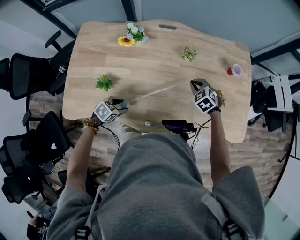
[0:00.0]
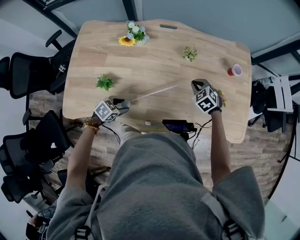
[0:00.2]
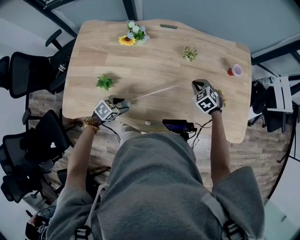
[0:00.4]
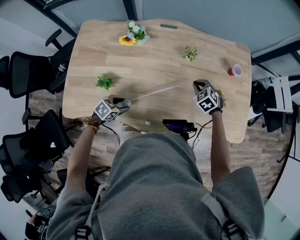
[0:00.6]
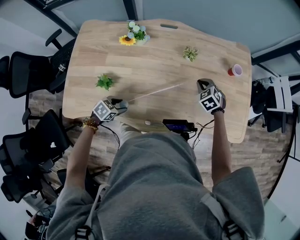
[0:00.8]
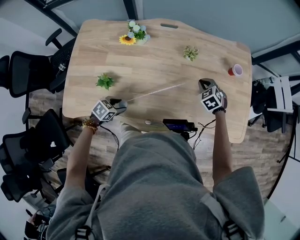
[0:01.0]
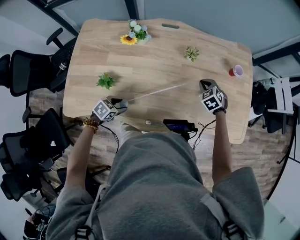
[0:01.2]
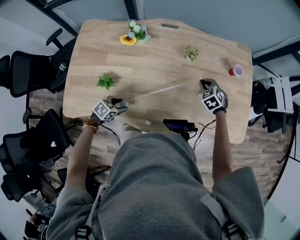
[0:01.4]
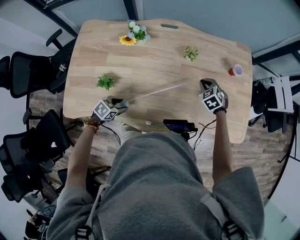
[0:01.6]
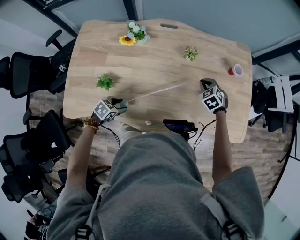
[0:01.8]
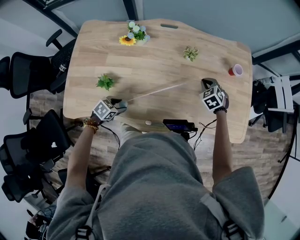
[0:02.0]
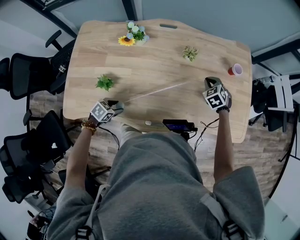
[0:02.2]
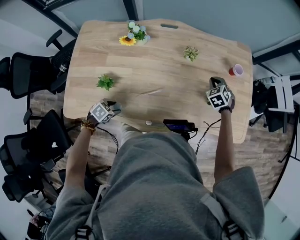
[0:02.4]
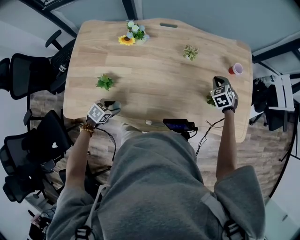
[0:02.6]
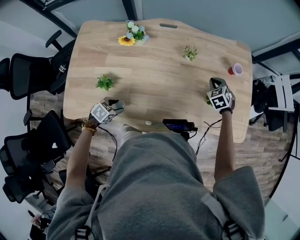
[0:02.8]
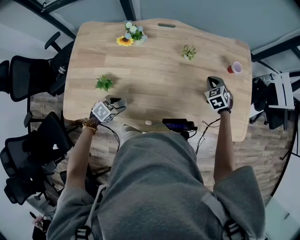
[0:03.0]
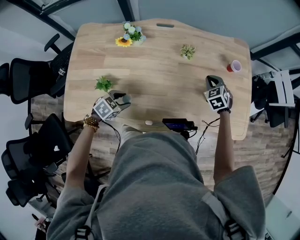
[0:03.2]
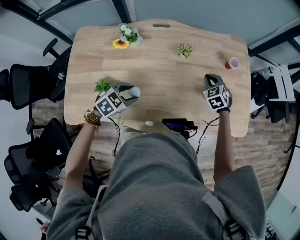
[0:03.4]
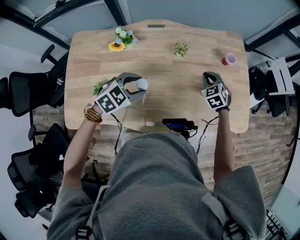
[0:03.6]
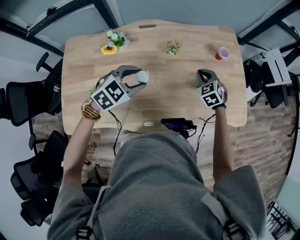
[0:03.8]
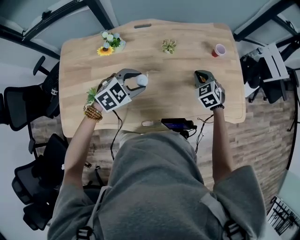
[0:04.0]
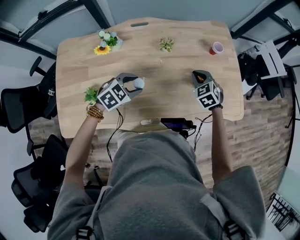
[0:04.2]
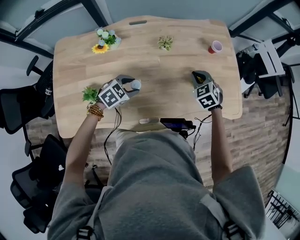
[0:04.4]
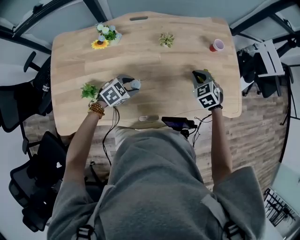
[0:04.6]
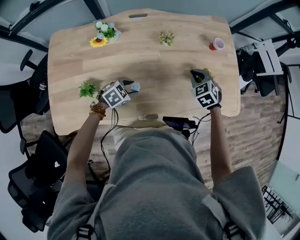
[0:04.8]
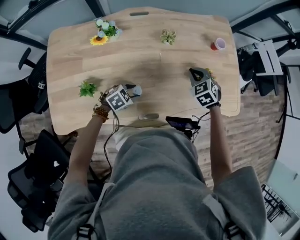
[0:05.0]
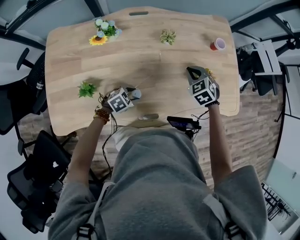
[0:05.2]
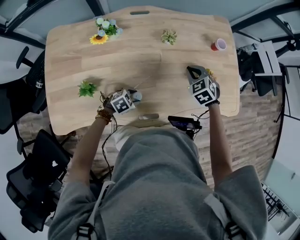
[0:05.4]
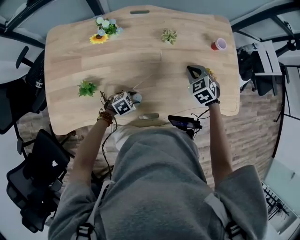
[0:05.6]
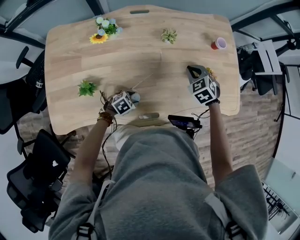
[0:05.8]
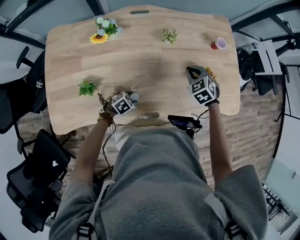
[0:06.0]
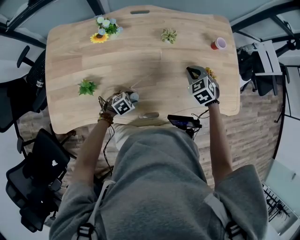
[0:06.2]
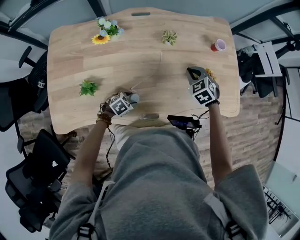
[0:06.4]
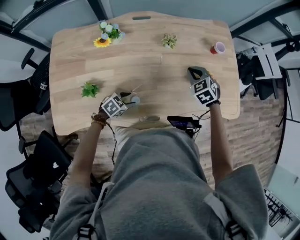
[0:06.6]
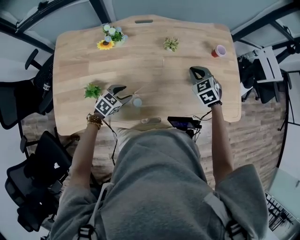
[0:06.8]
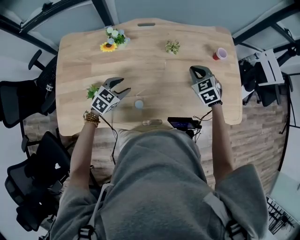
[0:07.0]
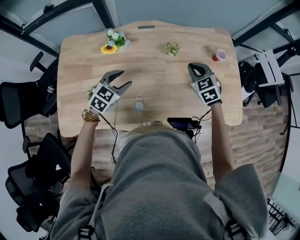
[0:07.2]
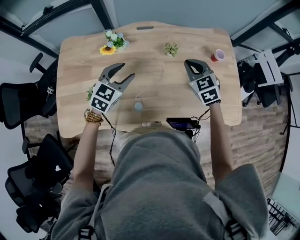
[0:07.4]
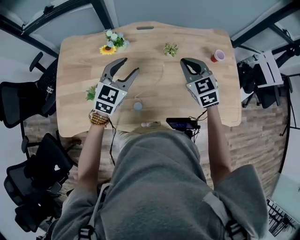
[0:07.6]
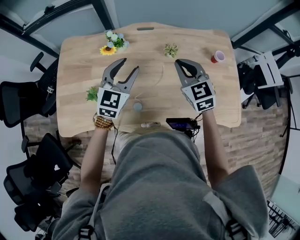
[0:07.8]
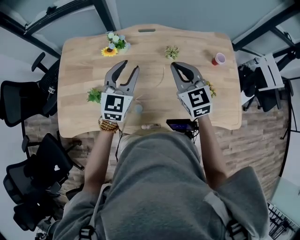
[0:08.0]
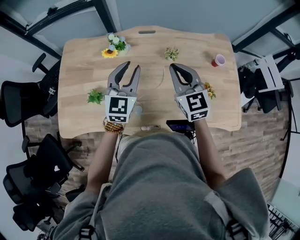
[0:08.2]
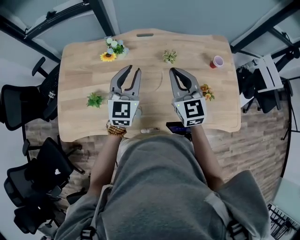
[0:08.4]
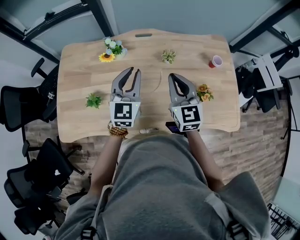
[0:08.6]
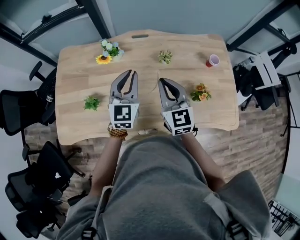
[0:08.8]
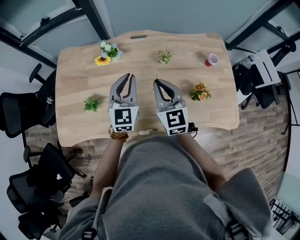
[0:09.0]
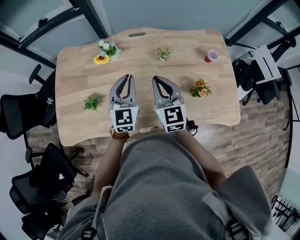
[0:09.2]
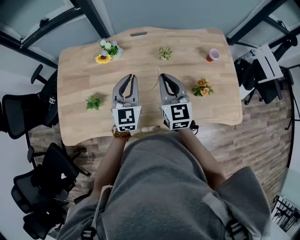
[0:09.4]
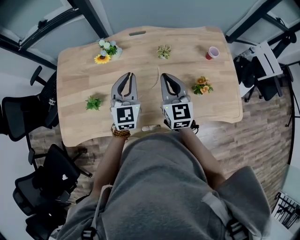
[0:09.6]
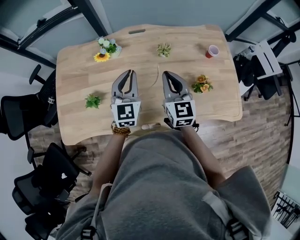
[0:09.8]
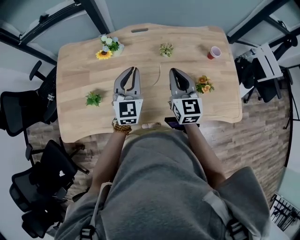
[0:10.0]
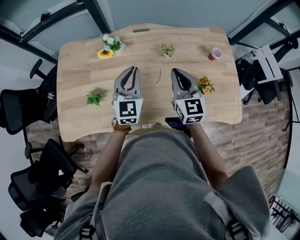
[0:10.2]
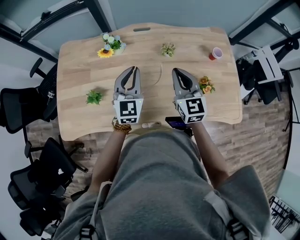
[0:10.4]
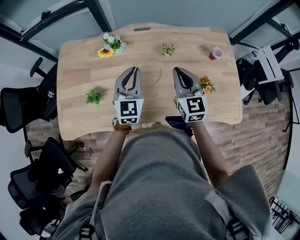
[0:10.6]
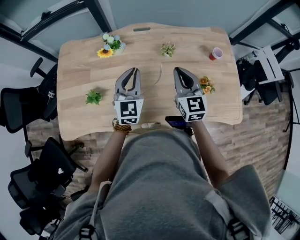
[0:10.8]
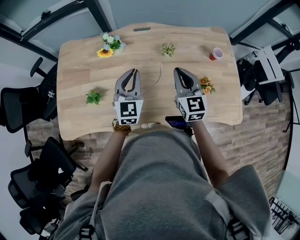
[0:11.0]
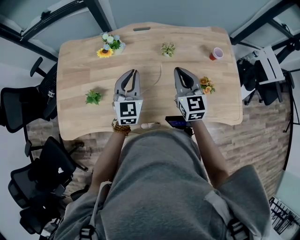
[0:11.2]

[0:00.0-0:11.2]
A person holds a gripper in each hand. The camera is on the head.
0:00.0 to 0:01.6: The right gripper changes place by about 5 cm.
0:01.6 to 0:03.2: The left gripper changes place by approximately 5 cm.
0:03.2 to 0:04.8: The left gripper moves forward and to the right, about 10 cm, and reaches about 15 cm upward, then returns; the right gripper heads backward, covering some 5 cm.
0:04.8 to 0:06.4: The left gripper is displaced downward and backward by some 10 cm.
0:06.4 to 0:08.0: The right gripper travels upward by approximately 20 cm, and tilts its fingers roughly 40 degrees upward. Meanwhile the left gripper moves upward, roughly 35 cm, and angles its fingers upward, by approximately 50 degrees.
0:08.0 to 0:09.6: The right gripper changes its angle by some 20 degrees. The left gripper closes.
0:09.6 to 0:11.2: The grippers stay close to where they were, moving slightly.

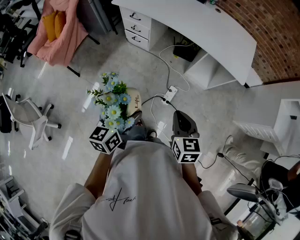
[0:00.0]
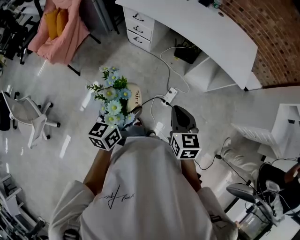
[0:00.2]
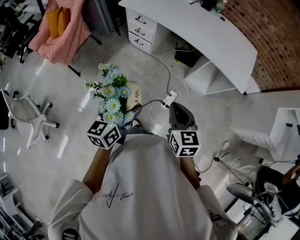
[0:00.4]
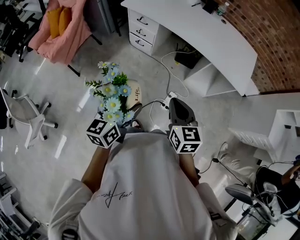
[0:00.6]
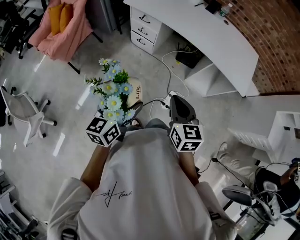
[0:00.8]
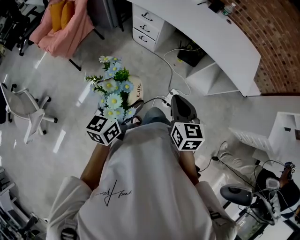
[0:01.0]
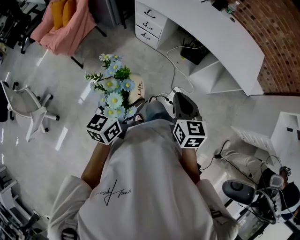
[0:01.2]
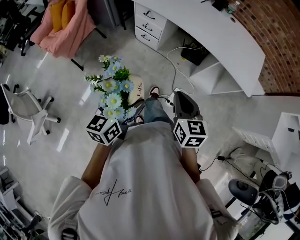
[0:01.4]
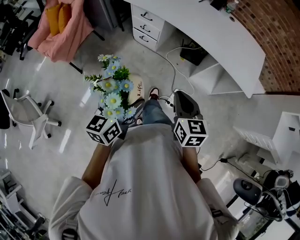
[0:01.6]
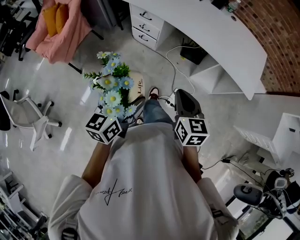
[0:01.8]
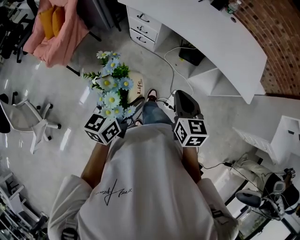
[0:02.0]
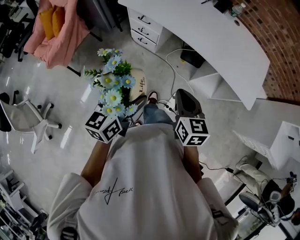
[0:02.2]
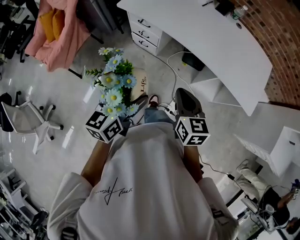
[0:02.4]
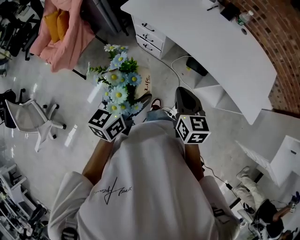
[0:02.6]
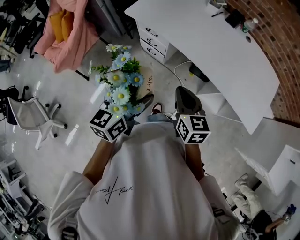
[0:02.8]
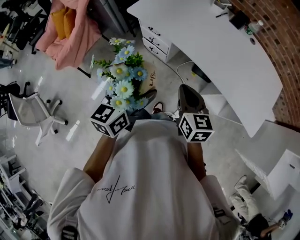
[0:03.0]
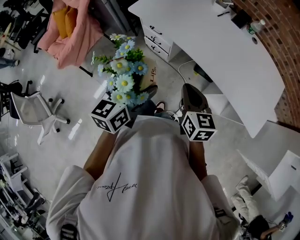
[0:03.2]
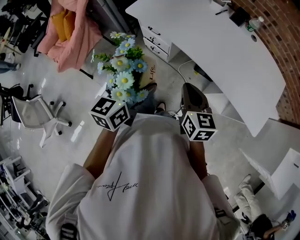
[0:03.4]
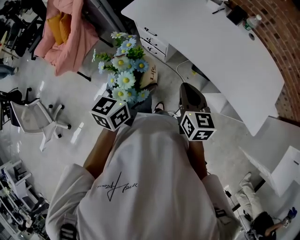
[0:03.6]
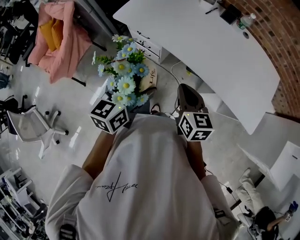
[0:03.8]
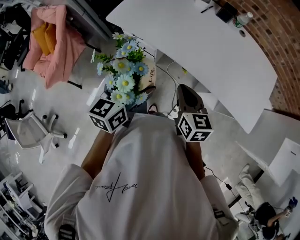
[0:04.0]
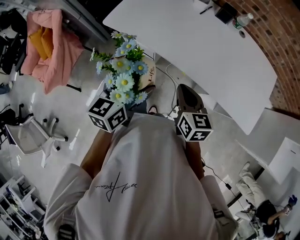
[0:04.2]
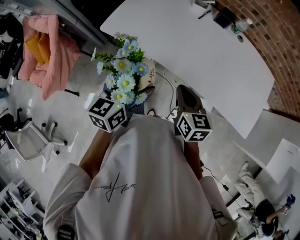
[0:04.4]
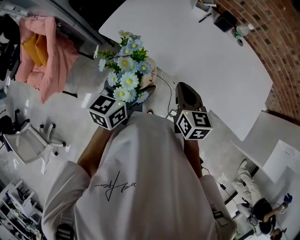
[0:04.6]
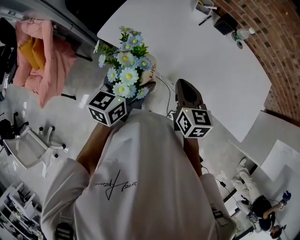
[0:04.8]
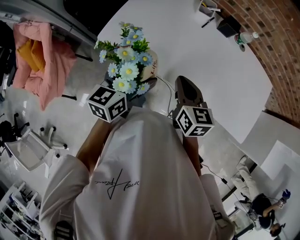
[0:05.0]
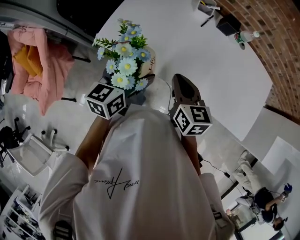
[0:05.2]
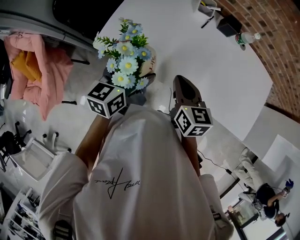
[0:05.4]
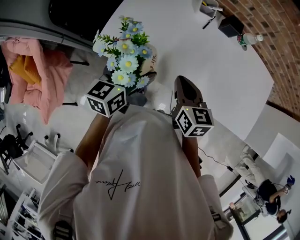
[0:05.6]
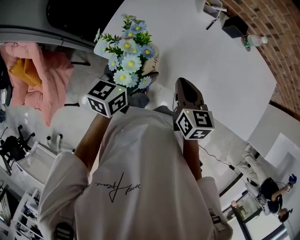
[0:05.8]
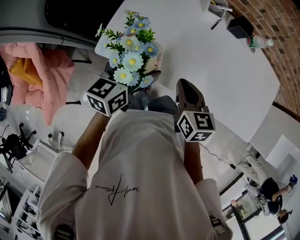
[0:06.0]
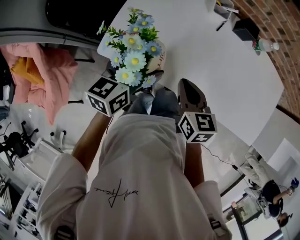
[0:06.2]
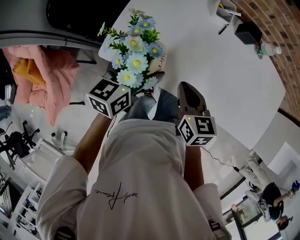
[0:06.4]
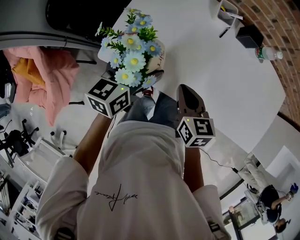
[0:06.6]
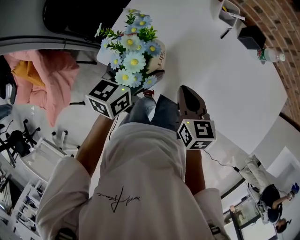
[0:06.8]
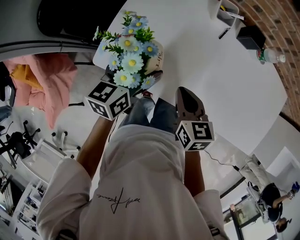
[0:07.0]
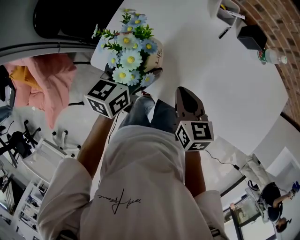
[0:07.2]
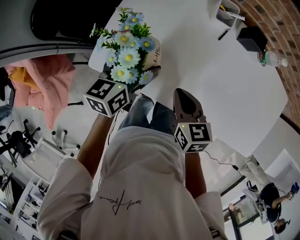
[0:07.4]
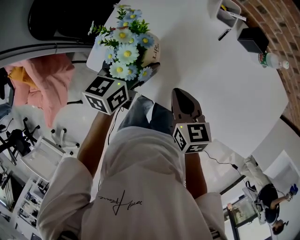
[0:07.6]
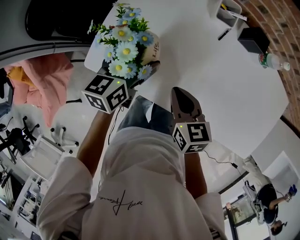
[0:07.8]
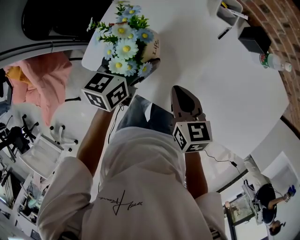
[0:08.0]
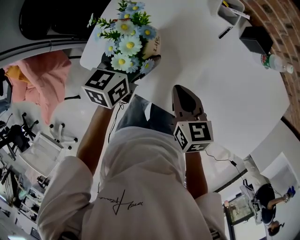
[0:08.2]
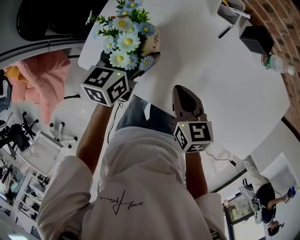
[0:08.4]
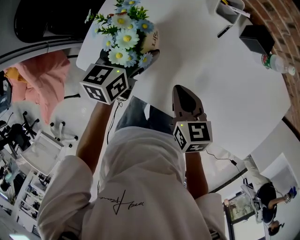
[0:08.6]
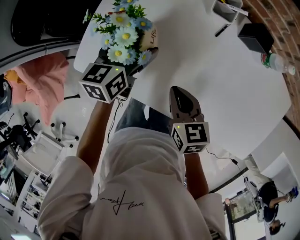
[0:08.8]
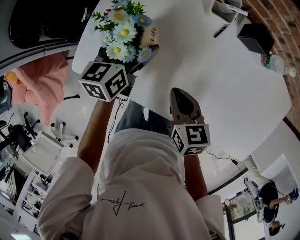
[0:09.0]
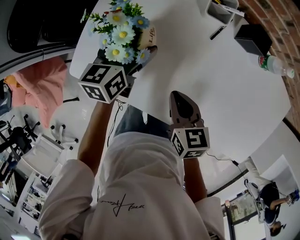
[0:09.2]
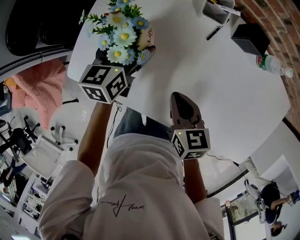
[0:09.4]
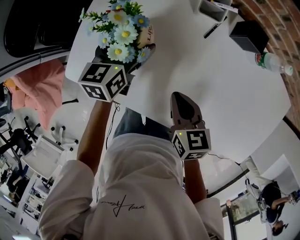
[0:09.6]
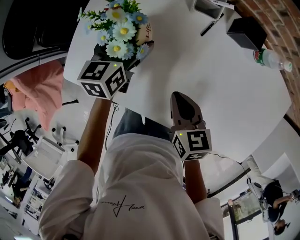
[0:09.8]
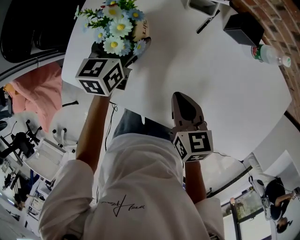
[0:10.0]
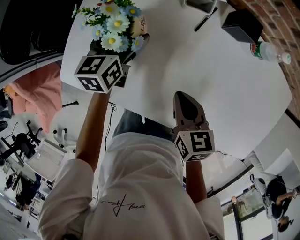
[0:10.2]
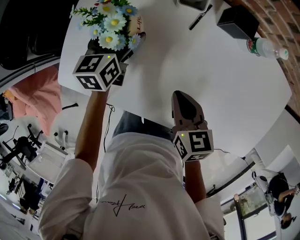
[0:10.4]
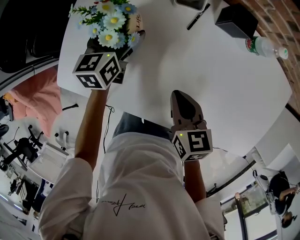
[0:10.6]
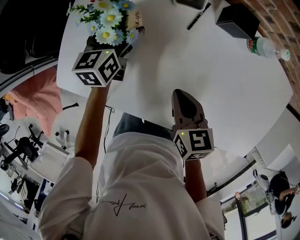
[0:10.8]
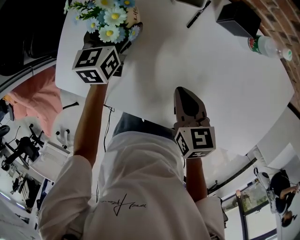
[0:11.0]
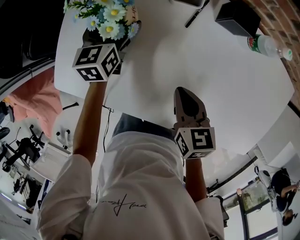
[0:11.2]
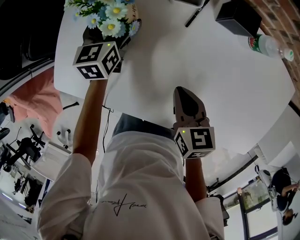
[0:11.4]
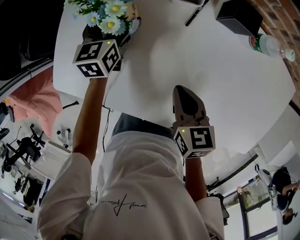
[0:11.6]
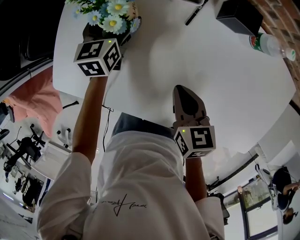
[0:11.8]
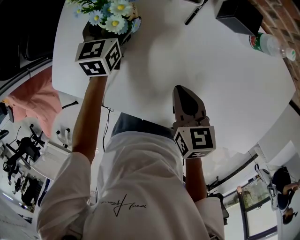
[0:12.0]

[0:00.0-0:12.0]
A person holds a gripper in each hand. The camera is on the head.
0:00.0 to 0:01.6: The grippers both shift forward and to the left by roughly 15 cm.
0:01.6 to 0:03.0: The two grippers go approximately 25 cm forward.
0:03.0 to 0:04.4: The grippers both shift forward by some 15 cm.
0:04.4 to 0:06.0: The two grippers go about 20 cm forward and to the left.
0:06.0 to 0:07.6: The two grippers go approximately 10 cm forward and downward.
0:07.6 to 0:09.0: The left gripper moves forward, about 5 cm, while the right gripper changes place by roughly 5 cm.
0:09.0 to 0:10.4: Both grippers move to the right, some 5 cm.
0:10.4 to 0:12.0: The left gripper changes place by some 5 cm.

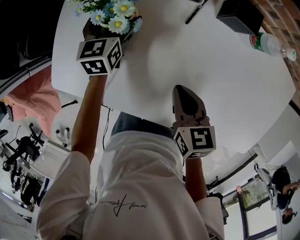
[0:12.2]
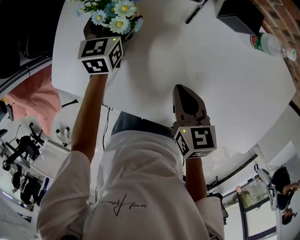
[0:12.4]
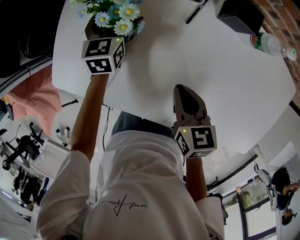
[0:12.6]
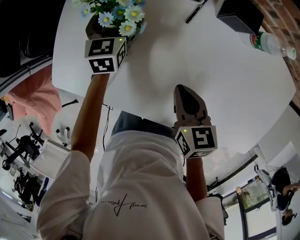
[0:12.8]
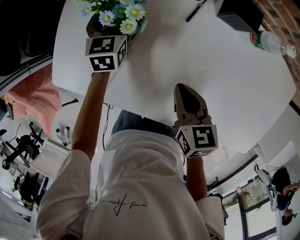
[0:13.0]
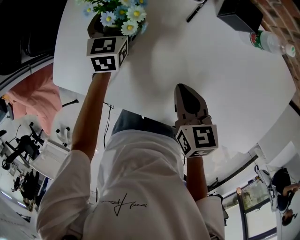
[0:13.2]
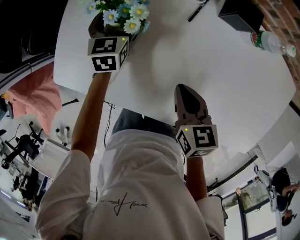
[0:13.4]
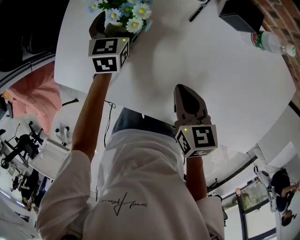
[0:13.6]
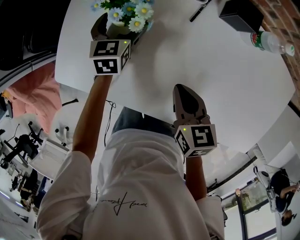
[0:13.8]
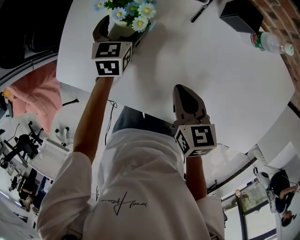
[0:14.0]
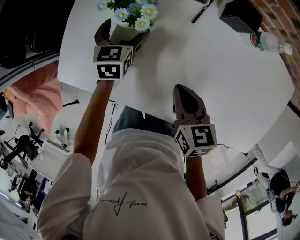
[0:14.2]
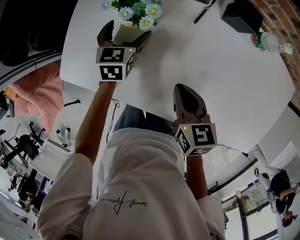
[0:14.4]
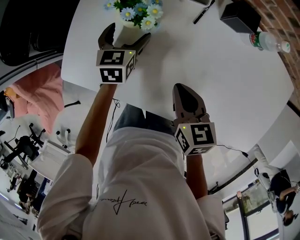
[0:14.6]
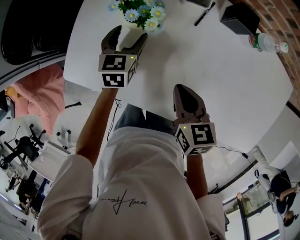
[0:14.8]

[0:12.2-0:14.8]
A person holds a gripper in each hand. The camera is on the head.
0:12.2 to 0:13.4: The grippers stay close to where they were, moving slightly.
0:13.4 to 0:14.8: The left gripper shifts approximately 5 cm backward, and closes its fingers.
